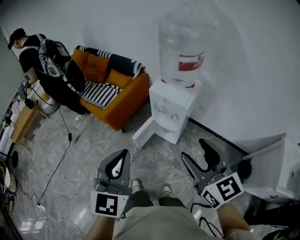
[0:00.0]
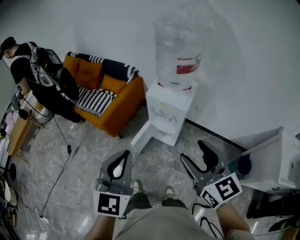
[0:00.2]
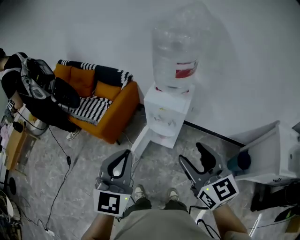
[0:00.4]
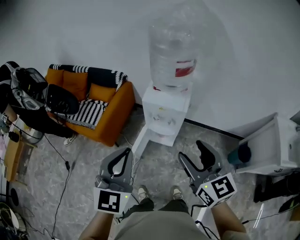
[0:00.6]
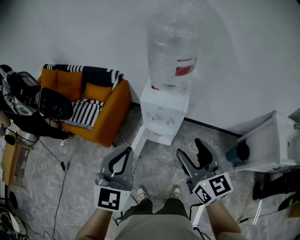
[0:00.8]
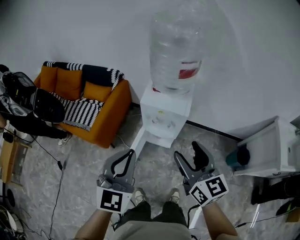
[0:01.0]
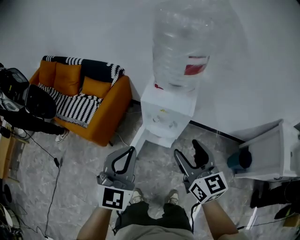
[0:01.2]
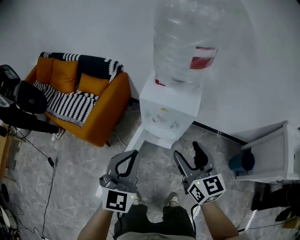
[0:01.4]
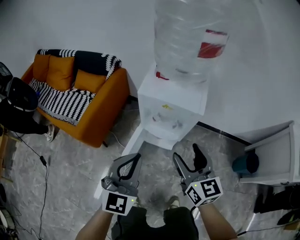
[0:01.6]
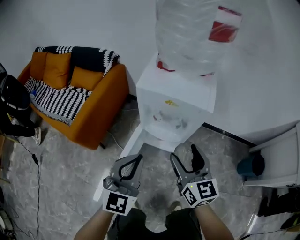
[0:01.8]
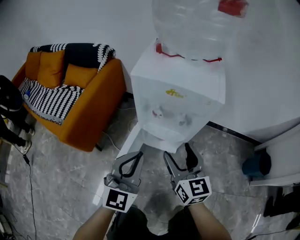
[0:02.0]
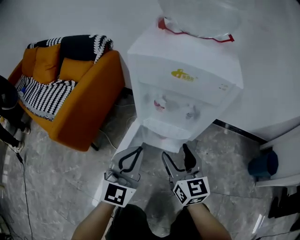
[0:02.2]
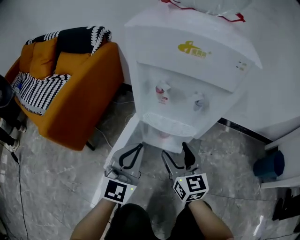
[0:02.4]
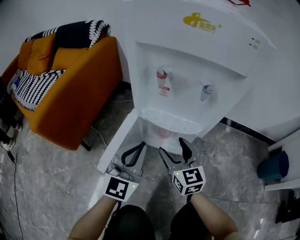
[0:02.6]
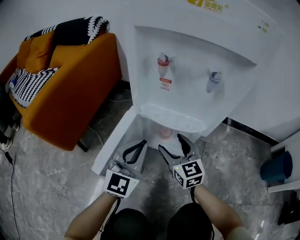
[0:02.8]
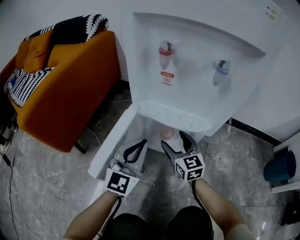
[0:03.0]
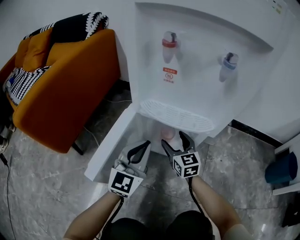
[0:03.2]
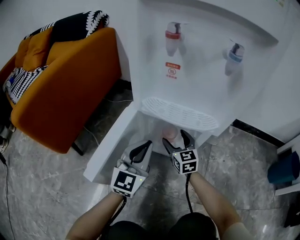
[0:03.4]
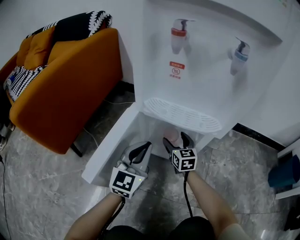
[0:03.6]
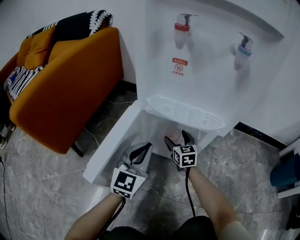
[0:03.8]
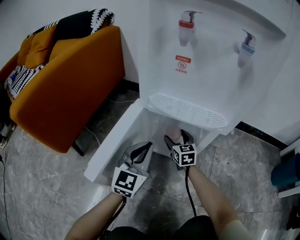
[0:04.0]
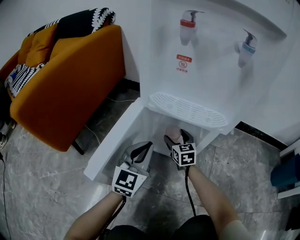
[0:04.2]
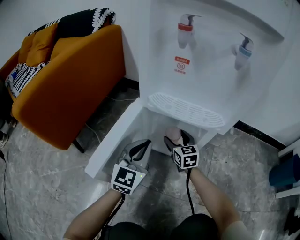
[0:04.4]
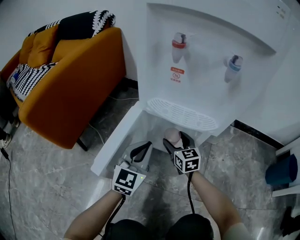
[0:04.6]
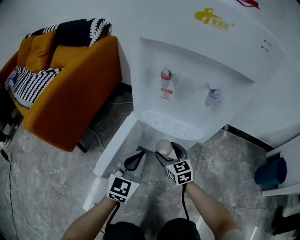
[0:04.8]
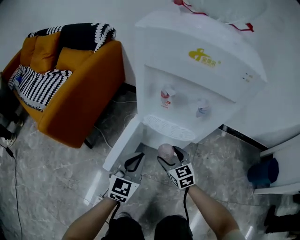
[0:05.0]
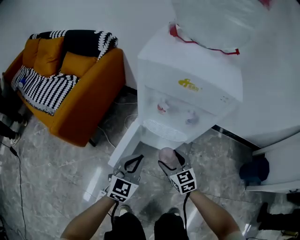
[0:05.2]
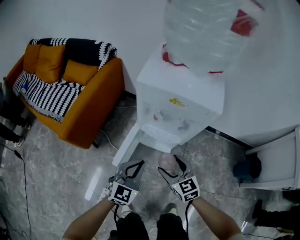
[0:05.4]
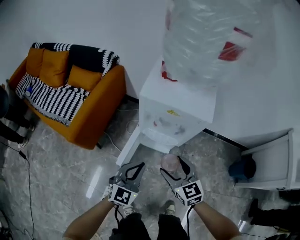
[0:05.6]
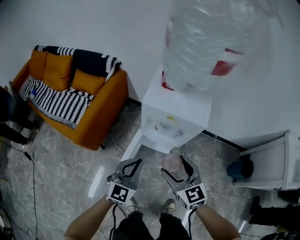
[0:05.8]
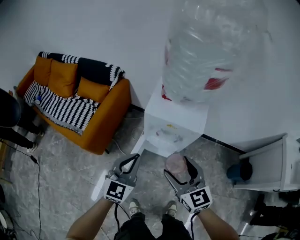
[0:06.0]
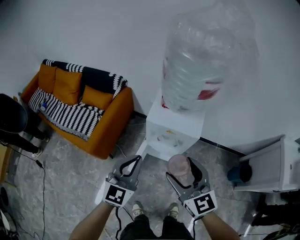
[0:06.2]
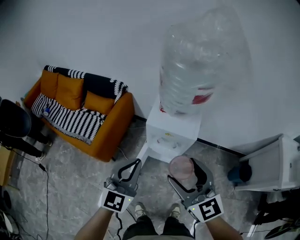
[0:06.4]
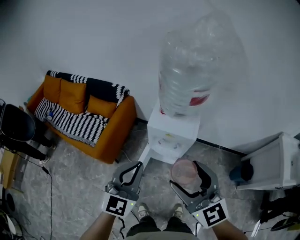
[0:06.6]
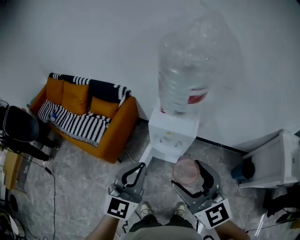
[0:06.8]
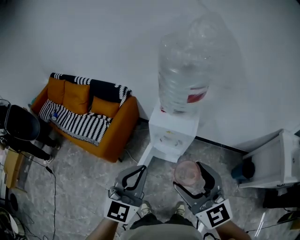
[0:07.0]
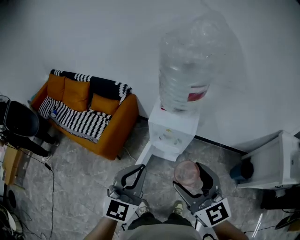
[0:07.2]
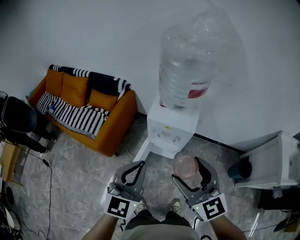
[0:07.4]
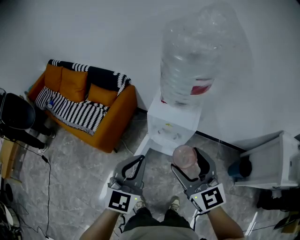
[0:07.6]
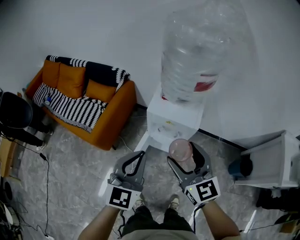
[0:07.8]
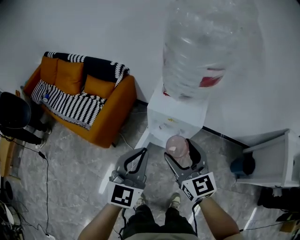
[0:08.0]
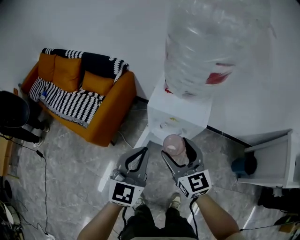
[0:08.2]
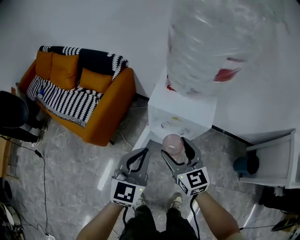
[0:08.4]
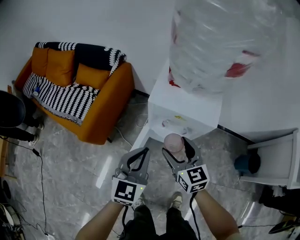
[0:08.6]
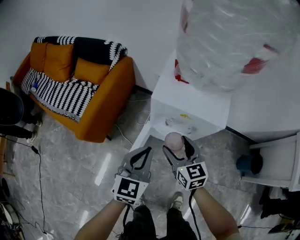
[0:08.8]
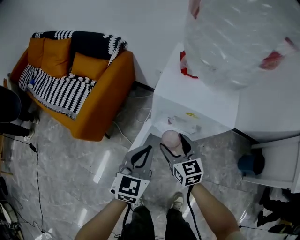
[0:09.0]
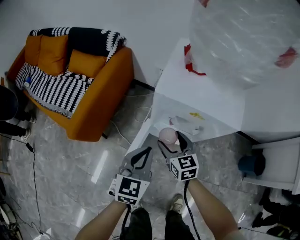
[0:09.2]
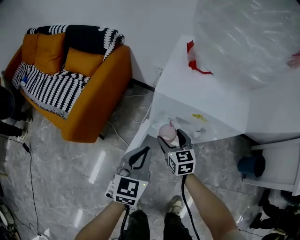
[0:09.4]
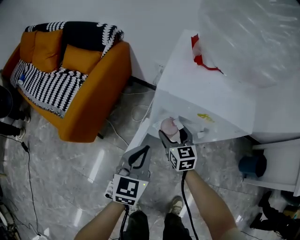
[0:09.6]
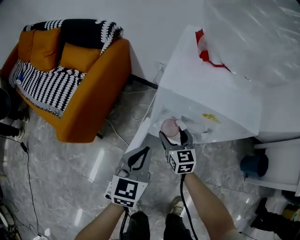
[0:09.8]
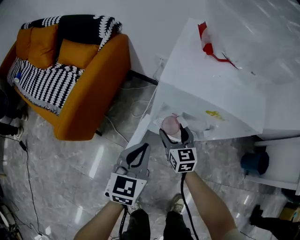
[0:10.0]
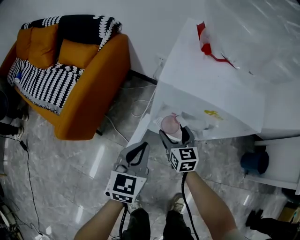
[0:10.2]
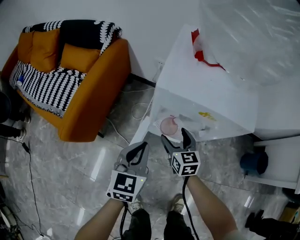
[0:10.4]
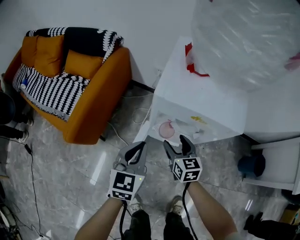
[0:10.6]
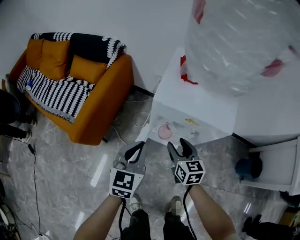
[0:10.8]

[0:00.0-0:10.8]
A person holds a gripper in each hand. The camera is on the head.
0:00.0 to 0:01.6: The two grippers go approximately 35 cm downward and forward. The right gripper rotates some 20 degrees. Meanwhile the left gripper turns by some 30 degrees.
0:01.6 to 0:03.0: The grippers both shift downward by some 50 cm.
0:03.0 to 0:04.6: The two grippers go about 5 cm downward.
0:04.6 to 0:06.2: Both grippers travel together upward, about 70 cm.
0:06.2 to 0:07.8: The right gripper travels upward and back again, roughly 15 cm each way, while the left gripper shifts roughly 5 cm upward.
0:07.8 to 0:09.2: The grippers both shift downward by roughly 40 cm. The right gripper changes its angle by some 20 degrees.
0:09.2 to 0:10.8: The left gripper travels downward and back again, approximately 10 cm each way; the right gripper travels downward and back again, some 10 cm each way.

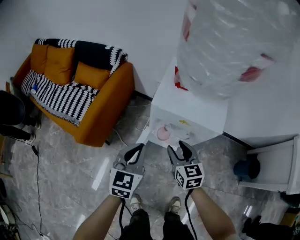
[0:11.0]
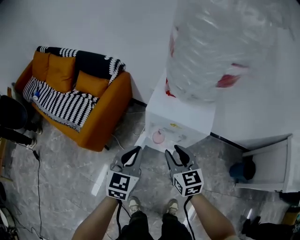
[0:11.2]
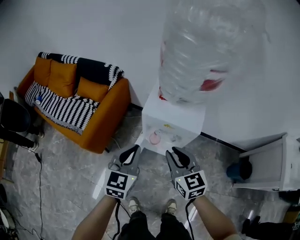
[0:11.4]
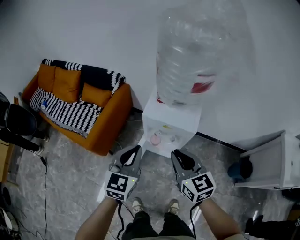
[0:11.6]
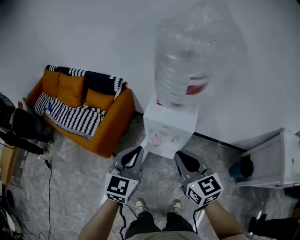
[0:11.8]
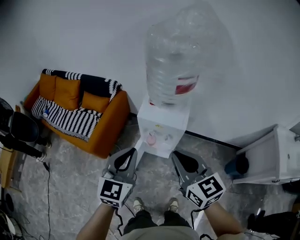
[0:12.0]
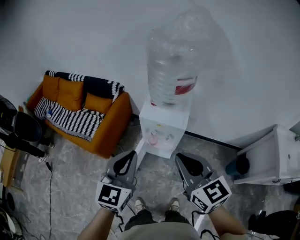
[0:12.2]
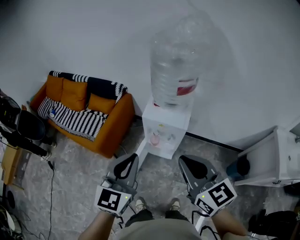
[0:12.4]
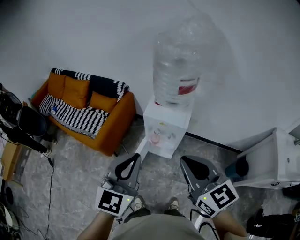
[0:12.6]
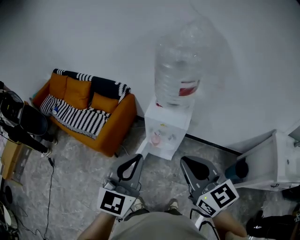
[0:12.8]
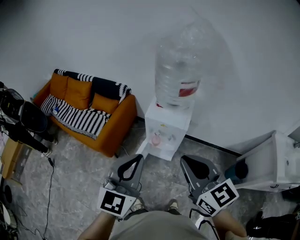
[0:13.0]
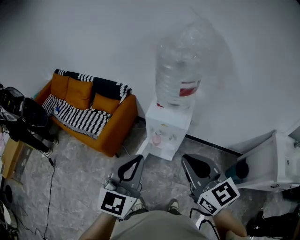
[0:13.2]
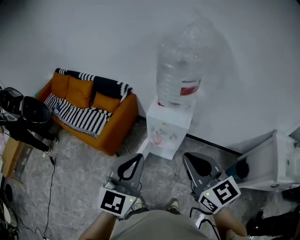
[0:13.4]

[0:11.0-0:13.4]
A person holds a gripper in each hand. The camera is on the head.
0:11.0 to 0:12.2: Both grippers travel together upward and backward, approximately 40 cm. The right gripper swivels approximately 20 degrees, and closes up.
0:12.2 to 0:13.4: The left gripper moves backward and upward, about 10 cm; the right gripper heads upward and backward, covering roughly 10 cm.

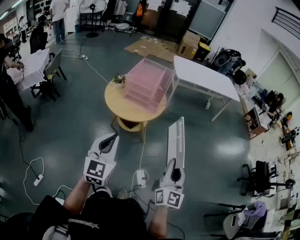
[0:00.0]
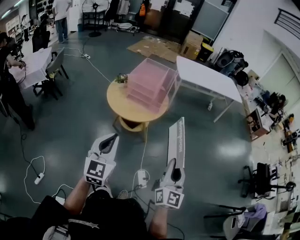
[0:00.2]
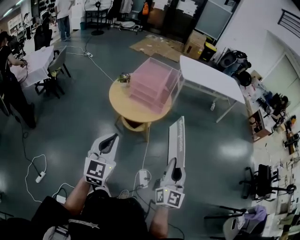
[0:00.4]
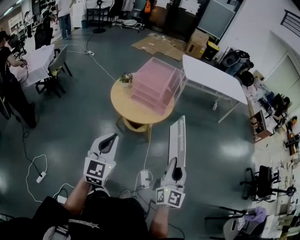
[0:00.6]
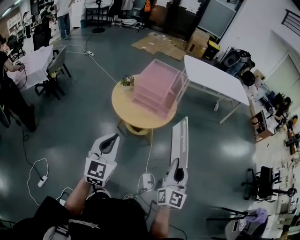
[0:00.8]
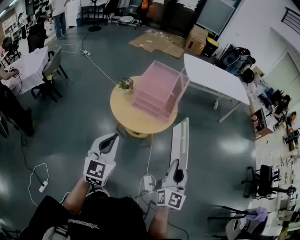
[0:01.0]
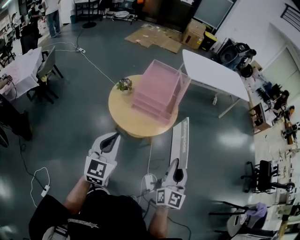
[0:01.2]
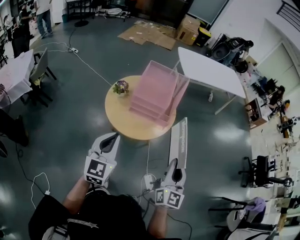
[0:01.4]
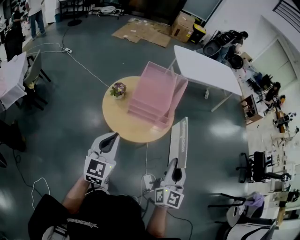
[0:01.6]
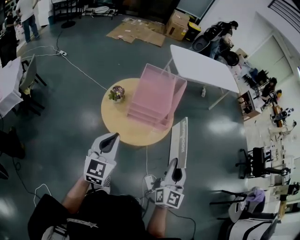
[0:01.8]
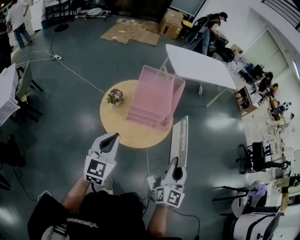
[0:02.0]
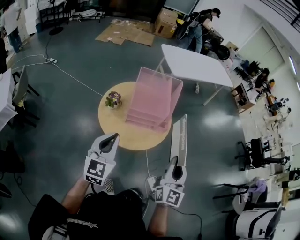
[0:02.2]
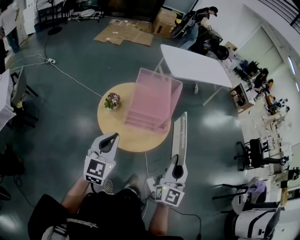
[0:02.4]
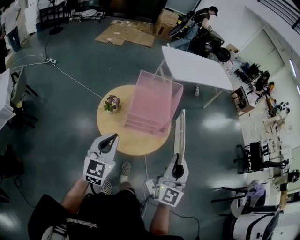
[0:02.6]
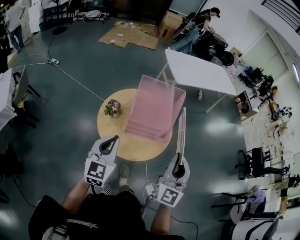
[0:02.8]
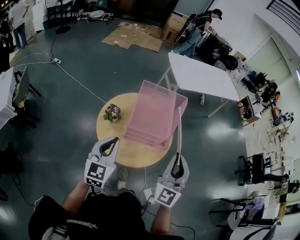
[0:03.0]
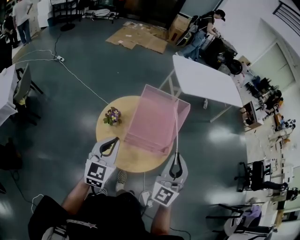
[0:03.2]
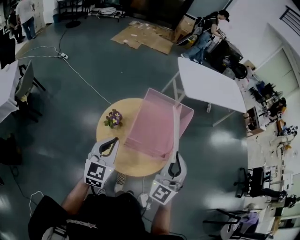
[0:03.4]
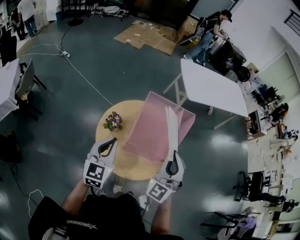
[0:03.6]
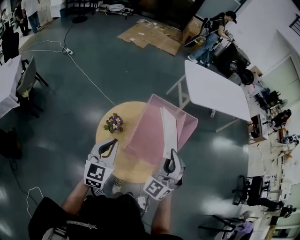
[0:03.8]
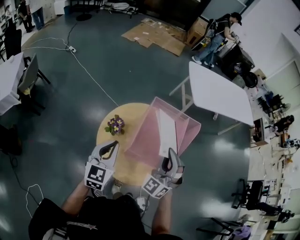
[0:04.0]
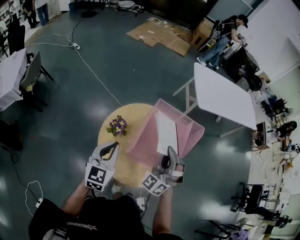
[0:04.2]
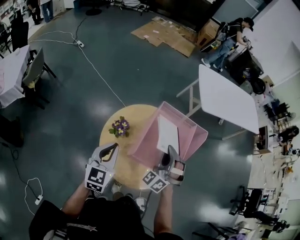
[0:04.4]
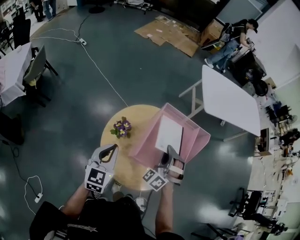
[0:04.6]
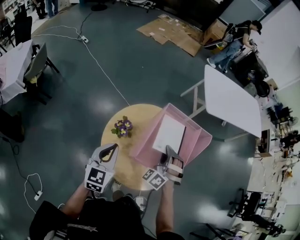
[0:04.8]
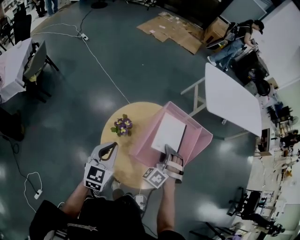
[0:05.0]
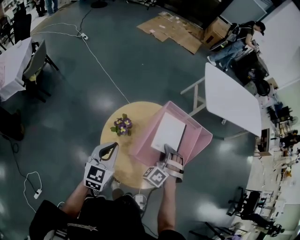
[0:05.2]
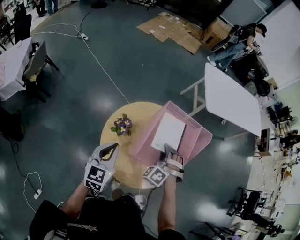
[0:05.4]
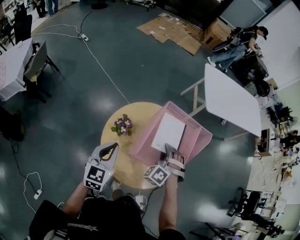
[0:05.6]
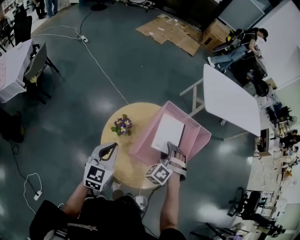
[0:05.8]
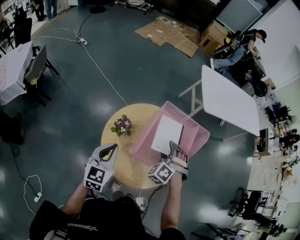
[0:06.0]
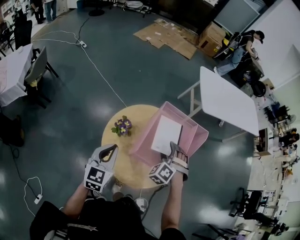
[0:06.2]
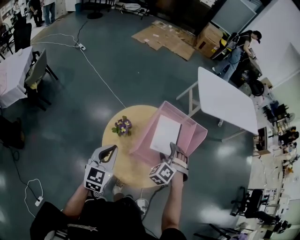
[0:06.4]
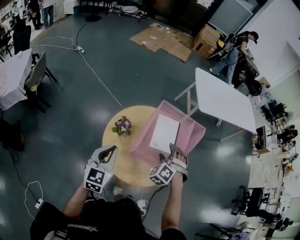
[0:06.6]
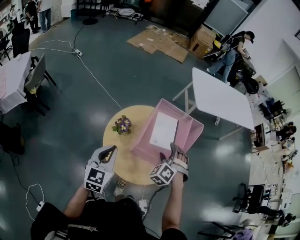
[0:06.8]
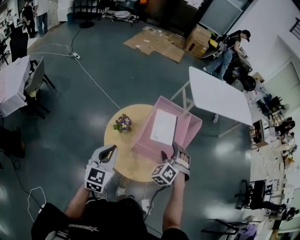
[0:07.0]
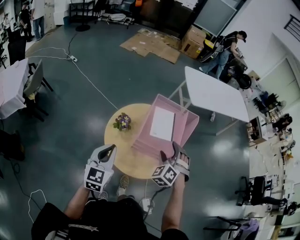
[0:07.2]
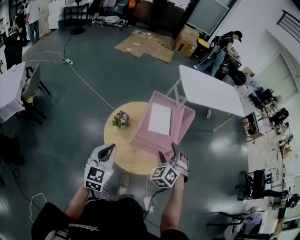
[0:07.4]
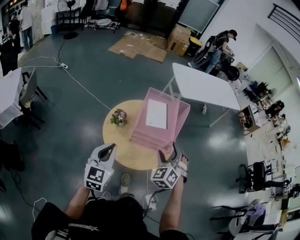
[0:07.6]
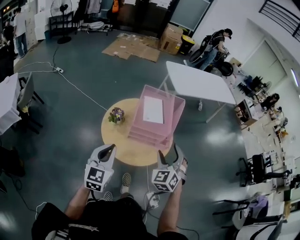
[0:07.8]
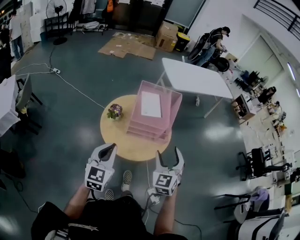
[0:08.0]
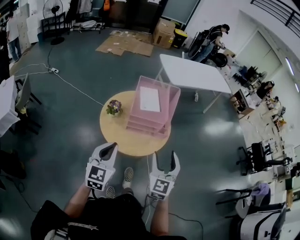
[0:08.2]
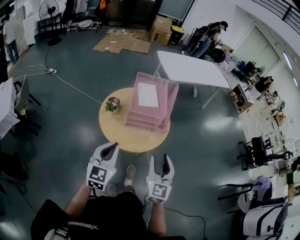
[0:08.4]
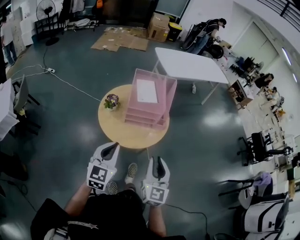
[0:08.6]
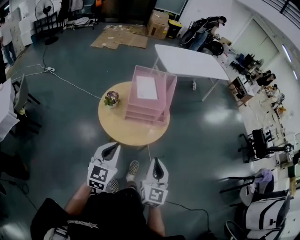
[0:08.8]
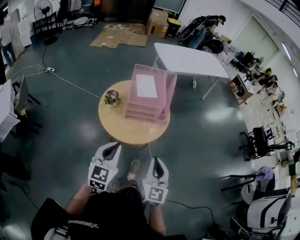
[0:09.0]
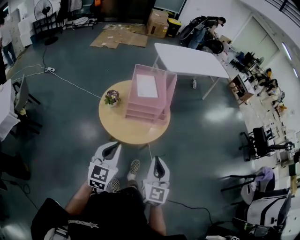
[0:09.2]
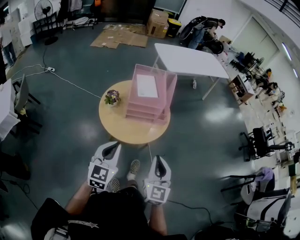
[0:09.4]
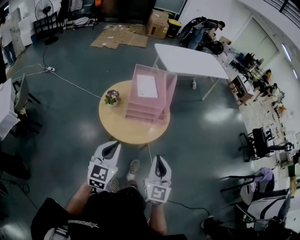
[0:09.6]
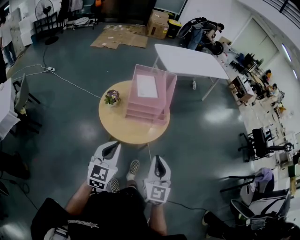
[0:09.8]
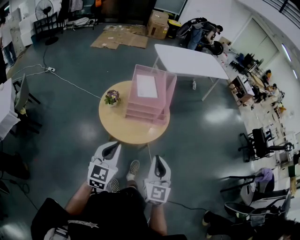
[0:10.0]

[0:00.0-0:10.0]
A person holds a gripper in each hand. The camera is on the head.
0:00.0 to 0:01.4: Both grippers move forward and to the left, some 20 cm.
0:01.4 to 0:02.8: The right gripper goes approximately 15 cm forward, to the left and upward, and turns by approximately 30 degrees. The left gripper heads forward and to the left, covering approximately 15 cm.
0:02.8 to 0:04.2: The right gripper goes some 30 cm forward, downward and to the left, and rolls counterclockwise, seen from behind, by approximately 40 degrees; the left gripper shifts about 15 cm forward and downward.
0:04.2 to 0:05.8: The right gripper goes approximately 10 cm downward, points its fingers about 30 degrees further downward, and opens up.
0:05.8 to 0:07.2: Both grippers move backward and upward, about 10 cm. The right gripper opens.
0:07.2 to 0:08.6: The right gripper is displaced backward by approximately 30 cm, twists roughly 60 degrees clockwise, seen from behind, and closes its fingers; the left gripper shifts some 15 cm backward and to the right.
0:08.6 to 0:10.0: The grippers stay close to where they were, moving slightly.
